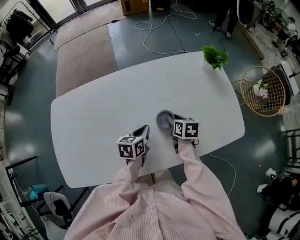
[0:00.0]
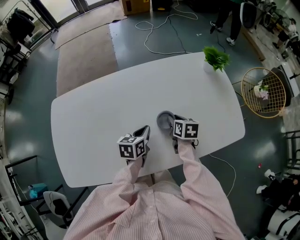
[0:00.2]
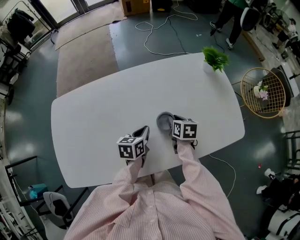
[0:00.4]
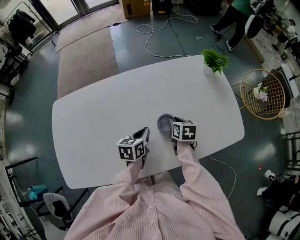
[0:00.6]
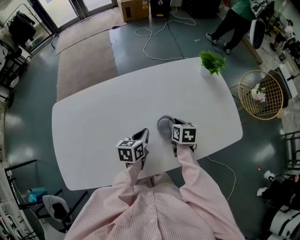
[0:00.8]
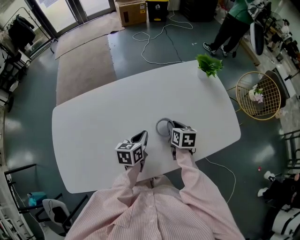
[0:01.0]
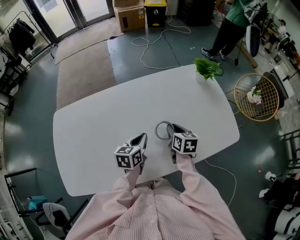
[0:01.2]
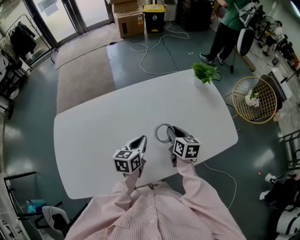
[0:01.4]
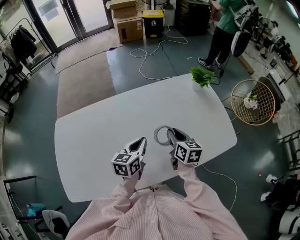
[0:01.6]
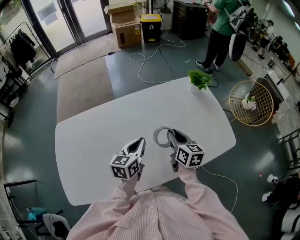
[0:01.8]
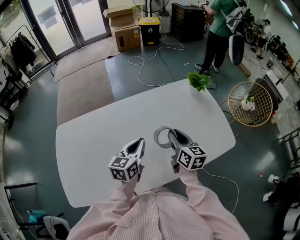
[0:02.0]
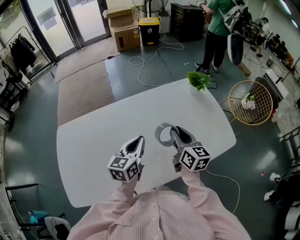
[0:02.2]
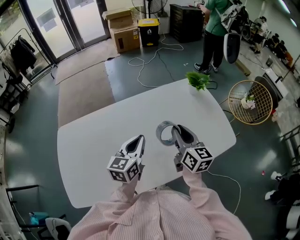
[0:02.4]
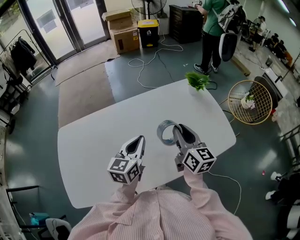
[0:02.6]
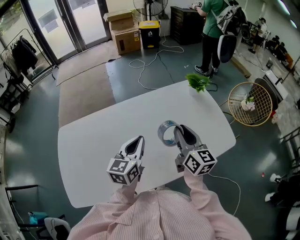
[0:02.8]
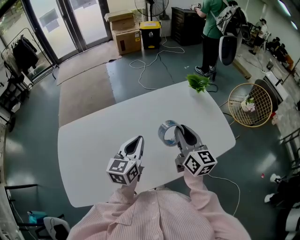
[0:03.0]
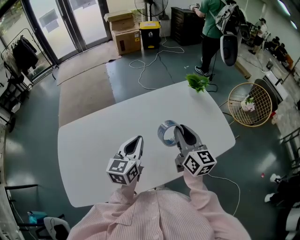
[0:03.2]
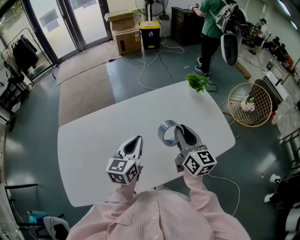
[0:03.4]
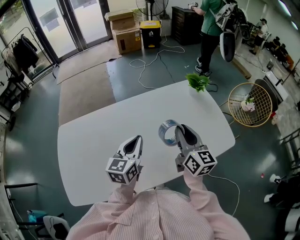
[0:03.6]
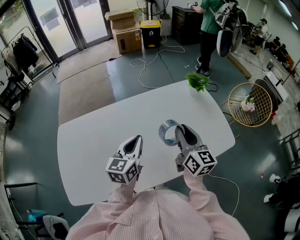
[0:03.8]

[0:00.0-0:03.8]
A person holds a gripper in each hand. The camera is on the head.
0:00.0 to 0:01.2: The right gripper is displaced upward by some 5 cm.
0:01.2 to 0:02.6: The grippers both shift upward by approximately 15 cm. The left gripper changes its angle by approximately 20 degrees; the right gripper tips its fingers upward by approximately 30 degrees.
0:02.6 to 0:03.8: The grippers make only small movements.

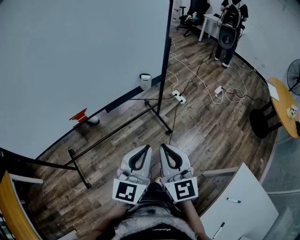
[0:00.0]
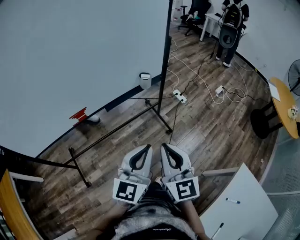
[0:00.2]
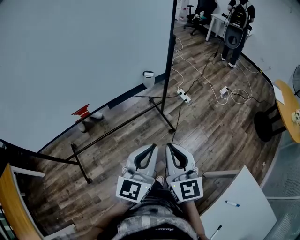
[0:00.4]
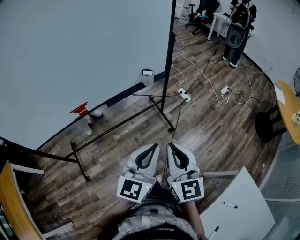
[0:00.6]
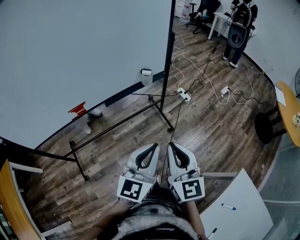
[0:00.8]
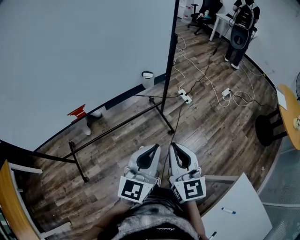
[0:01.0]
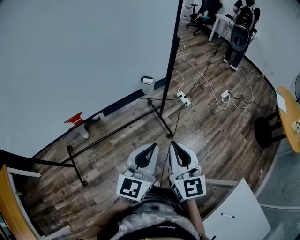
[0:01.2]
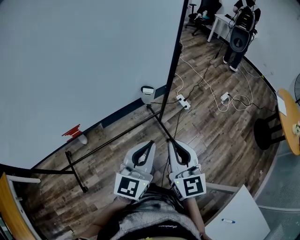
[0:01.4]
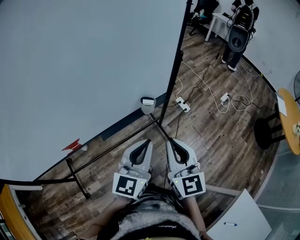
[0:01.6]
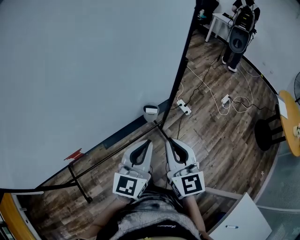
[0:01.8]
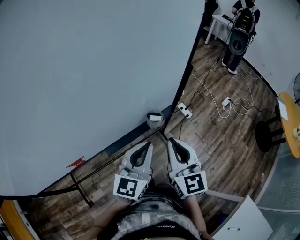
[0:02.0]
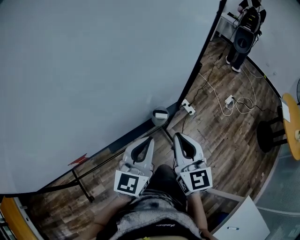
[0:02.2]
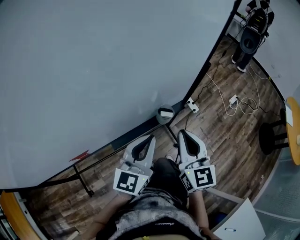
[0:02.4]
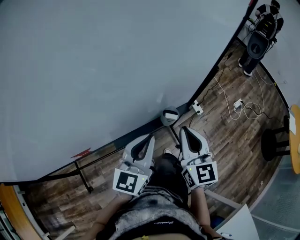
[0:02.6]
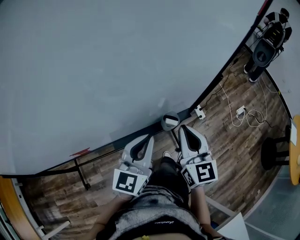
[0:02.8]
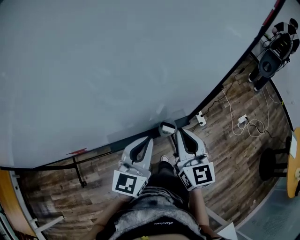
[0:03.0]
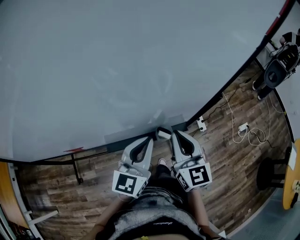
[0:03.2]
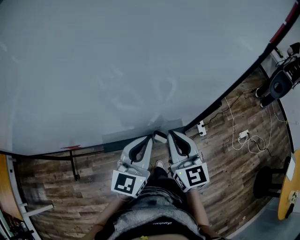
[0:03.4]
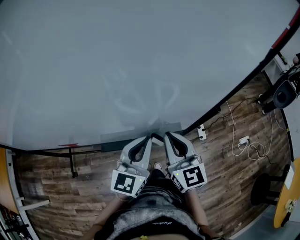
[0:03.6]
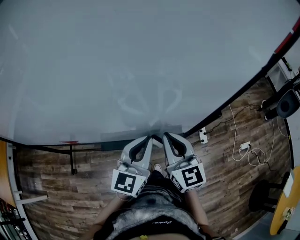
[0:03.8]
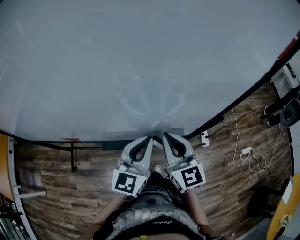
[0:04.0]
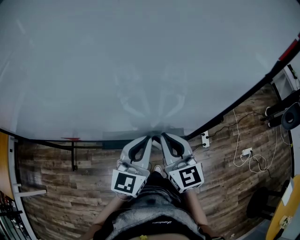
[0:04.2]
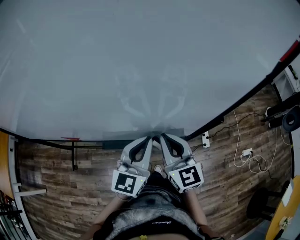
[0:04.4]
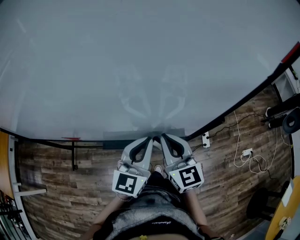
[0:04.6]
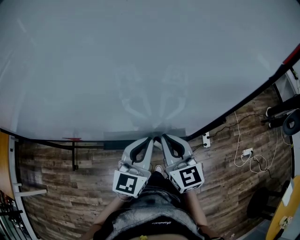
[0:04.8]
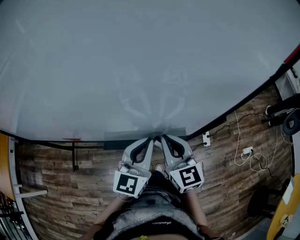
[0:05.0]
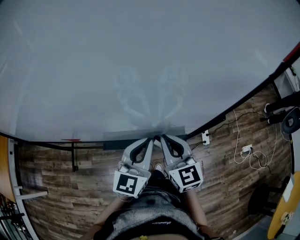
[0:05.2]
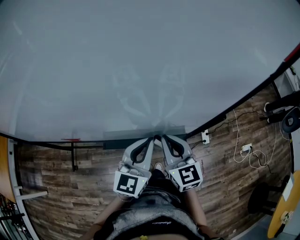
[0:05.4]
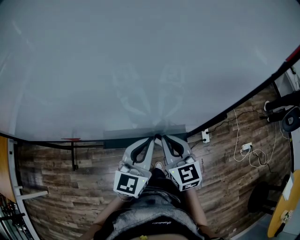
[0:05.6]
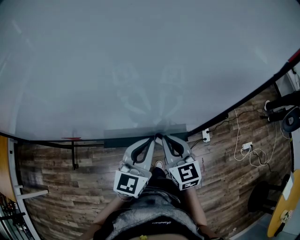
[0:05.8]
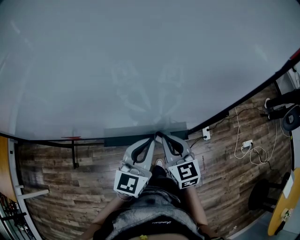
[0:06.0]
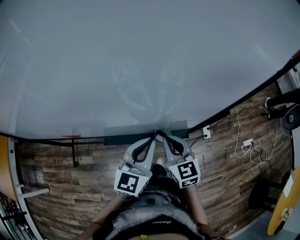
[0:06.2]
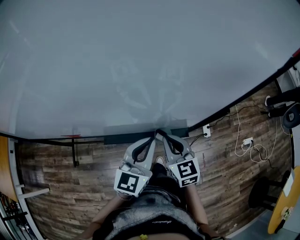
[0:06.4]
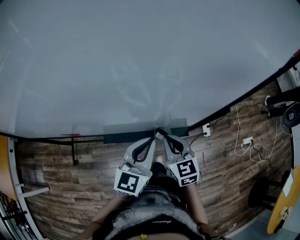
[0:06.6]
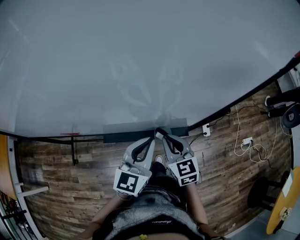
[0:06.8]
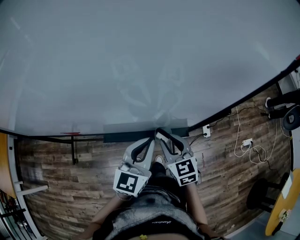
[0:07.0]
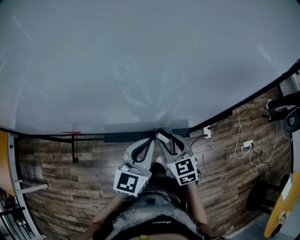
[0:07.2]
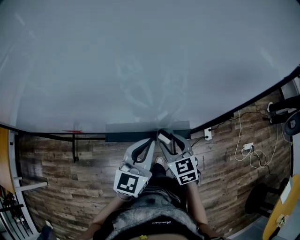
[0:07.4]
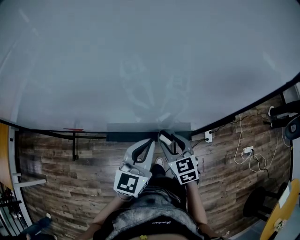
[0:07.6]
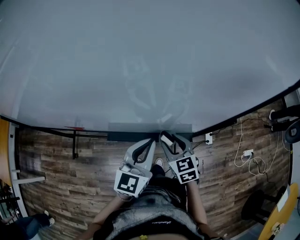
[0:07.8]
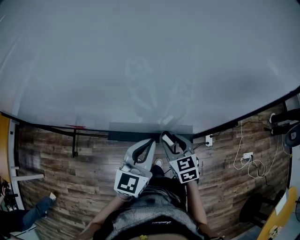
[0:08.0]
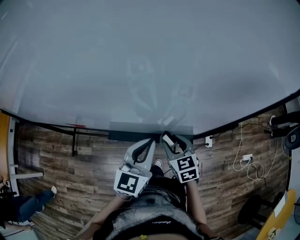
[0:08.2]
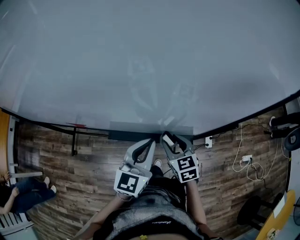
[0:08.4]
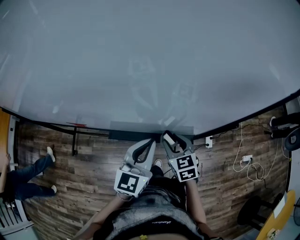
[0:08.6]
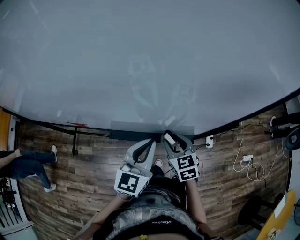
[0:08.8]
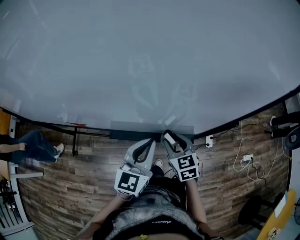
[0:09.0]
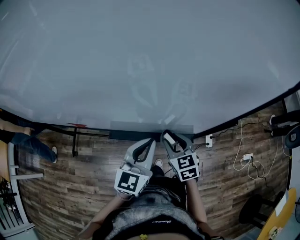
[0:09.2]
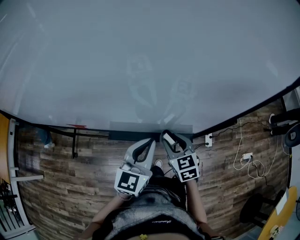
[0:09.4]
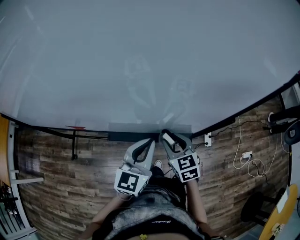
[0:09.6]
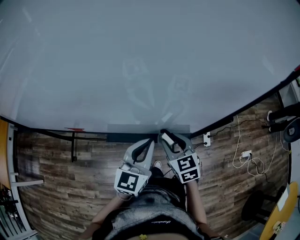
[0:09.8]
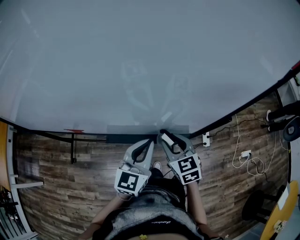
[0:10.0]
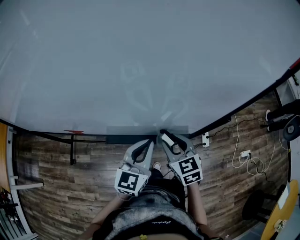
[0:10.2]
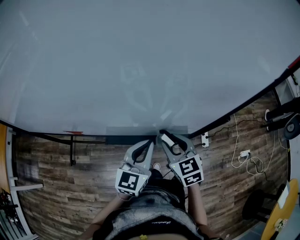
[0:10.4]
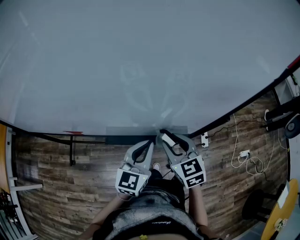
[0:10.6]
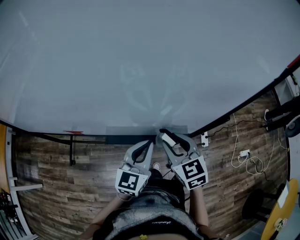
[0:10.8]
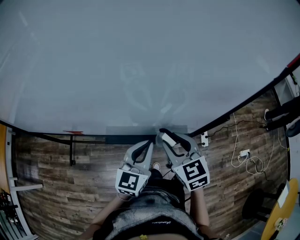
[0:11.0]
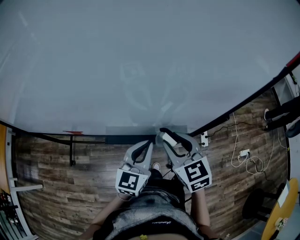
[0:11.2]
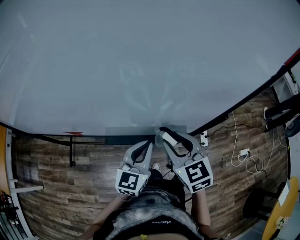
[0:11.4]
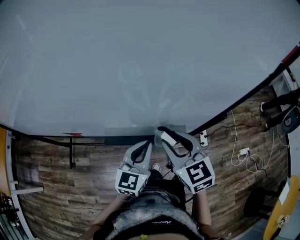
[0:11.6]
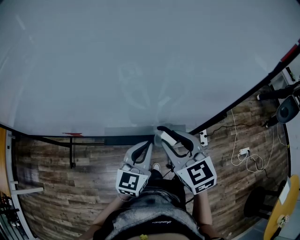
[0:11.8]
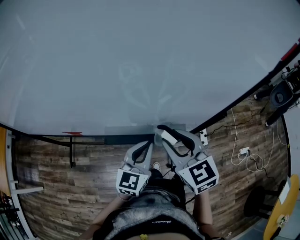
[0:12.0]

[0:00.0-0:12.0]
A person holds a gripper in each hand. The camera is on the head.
0:00.0 to 0:01.6: The grippers both shift forward by about 25 cm.
0:01.6 to 0:03.0: The right gripper goes about 20 cm forward; the left gripper heads forward and to the left, covering approximately 15 cm.
0:03.0 to 0:04.4: The left gripper shifts about 10 cm forward and to the right. The right gripper goes approximately 5 cm forward, and changes its angle by roughly 30 degrees.
0:04.4 to 0:06.0: The right gripper travels downward by about 5 cm.
0:06.0 to 0:07.6: The right gripper heads downward, covering roughly 5 cm, and opens up.
0:07.6 to 0:09.0: The grippers make only small movements.
0:09.0 to 0:10.4: The right gripper moves upward, some 5 cm.
0:10.4 to 0:12.0: The right gripper heads upward, covering approximately 10 cm.

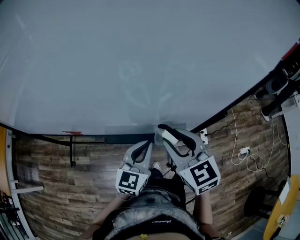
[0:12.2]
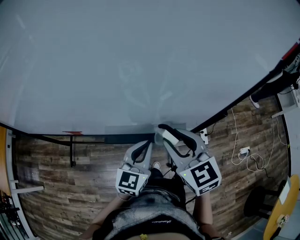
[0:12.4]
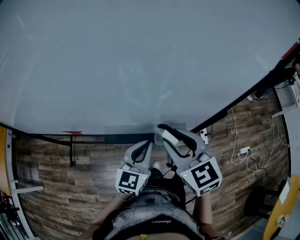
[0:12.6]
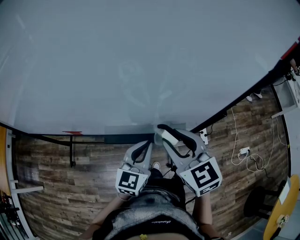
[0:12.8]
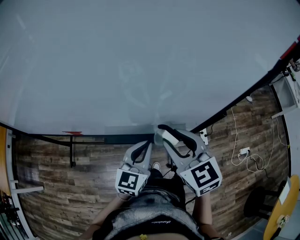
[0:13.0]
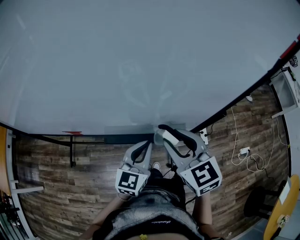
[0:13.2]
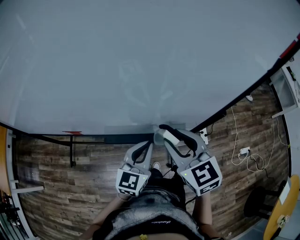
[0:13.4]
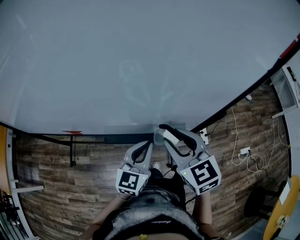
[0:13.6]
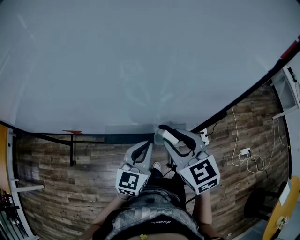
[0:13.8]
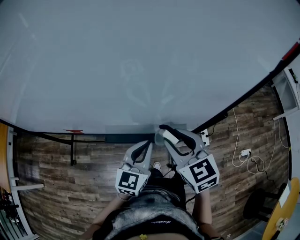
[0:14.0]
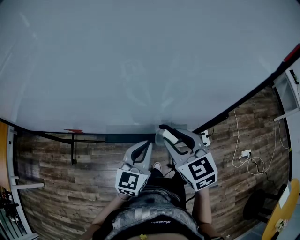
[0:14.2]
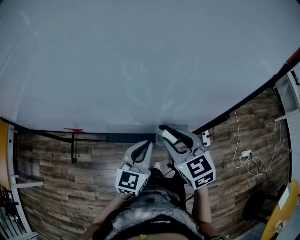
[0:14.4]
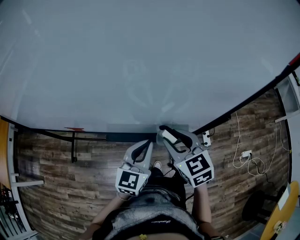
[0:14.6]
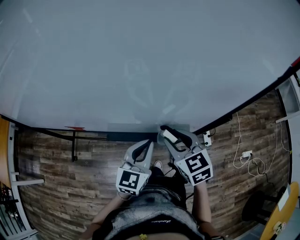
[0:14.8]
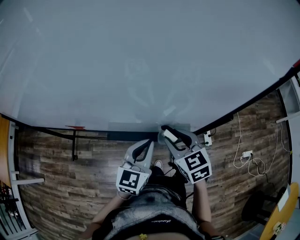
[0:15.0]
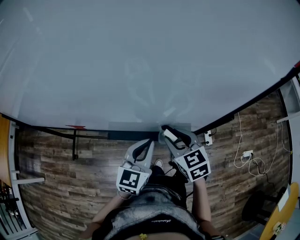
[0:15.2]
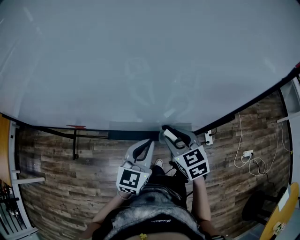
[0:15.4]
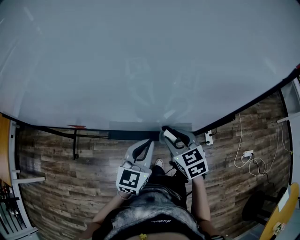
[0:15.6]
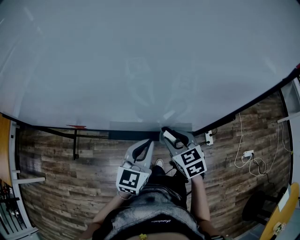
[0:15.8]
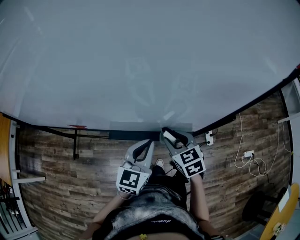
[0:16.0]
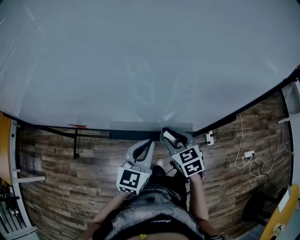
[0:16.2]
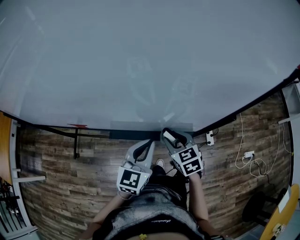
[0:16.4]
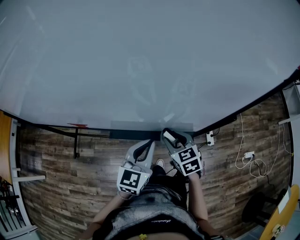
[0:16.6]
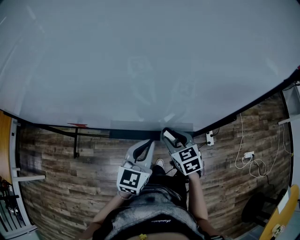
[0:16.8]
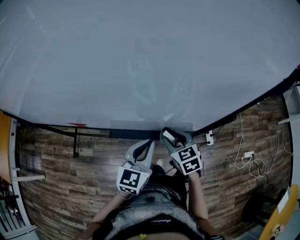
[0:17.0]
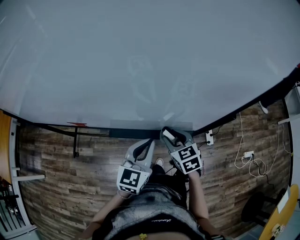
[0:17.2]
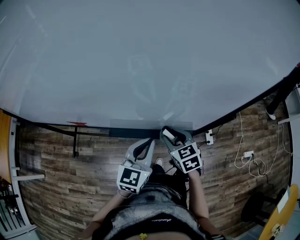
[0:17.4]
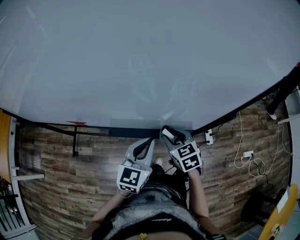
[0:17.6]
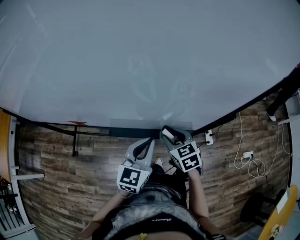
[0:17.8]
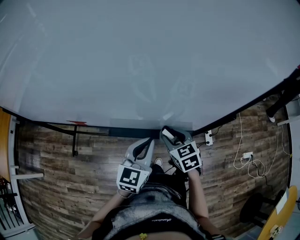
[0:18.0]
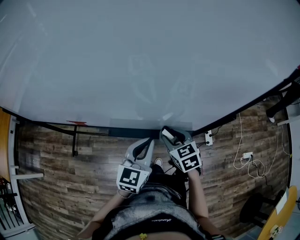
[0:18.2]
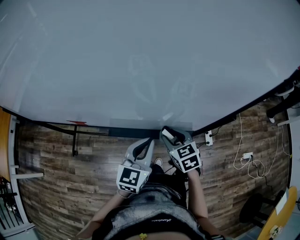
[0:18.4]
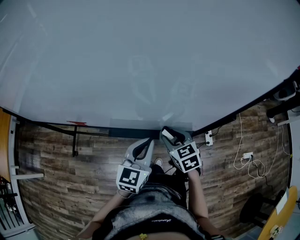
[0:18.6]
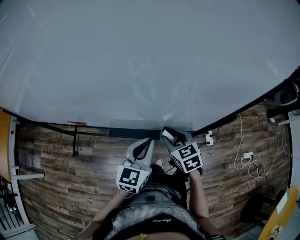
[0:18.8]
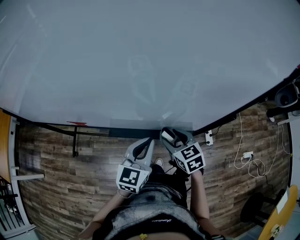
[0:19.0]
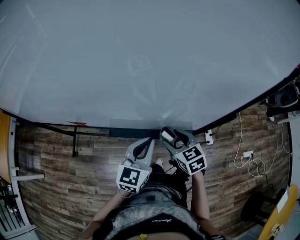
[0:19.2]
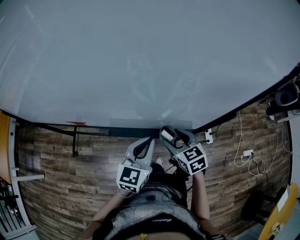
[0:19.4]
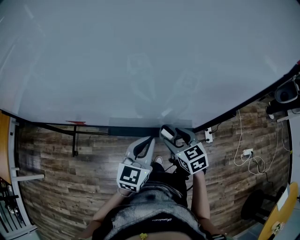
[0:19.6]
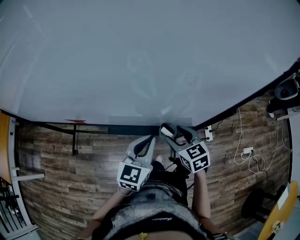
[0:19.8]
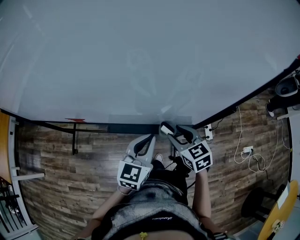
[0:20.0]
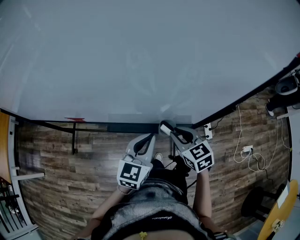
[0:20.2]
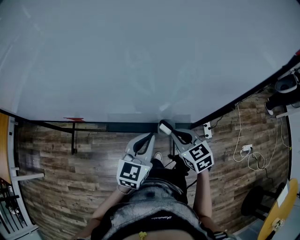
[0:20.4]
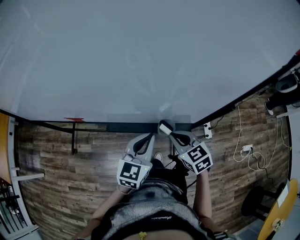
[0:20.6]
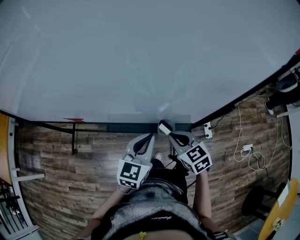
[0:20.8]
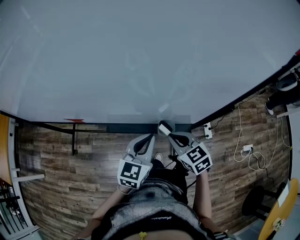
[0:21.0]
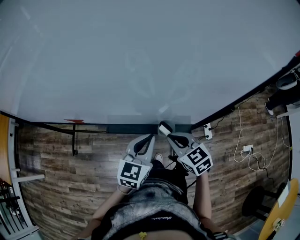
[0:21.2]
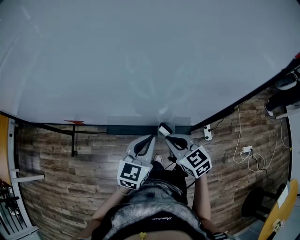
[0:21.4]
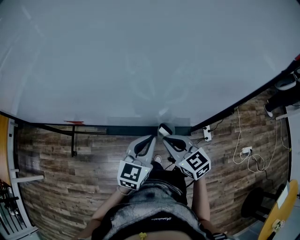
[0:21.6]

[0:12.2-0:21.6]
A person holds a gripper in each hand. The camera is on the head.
0:12.2 to 0:13.8: Both grippers stay put.
0:13.8 to 0:15.4: The right gripper shifts about 10 cm downward.
0:15.4 to 0:17.0: The right gripper heads downward, covering roughly 5 cm.
0:17.0 to 0:18.4: Both grippers stay about where they are.
0:18.4 to 0:20.0: The grippers make only small movements.
0:20.0 to 0:21.6: The right gripper closes.
